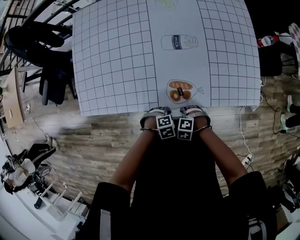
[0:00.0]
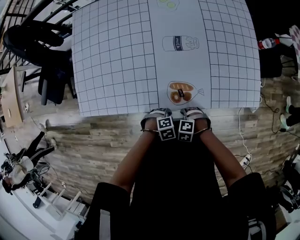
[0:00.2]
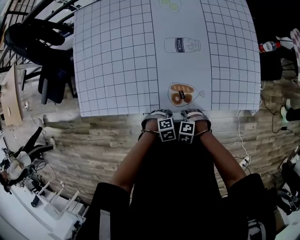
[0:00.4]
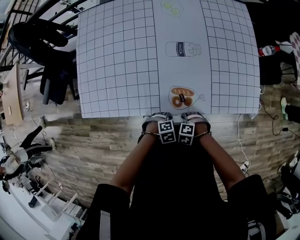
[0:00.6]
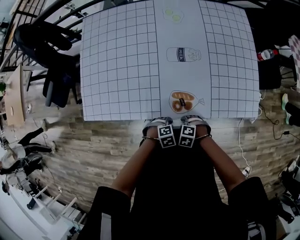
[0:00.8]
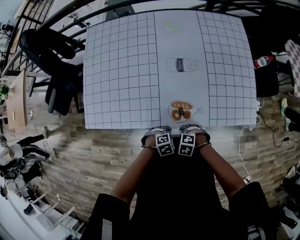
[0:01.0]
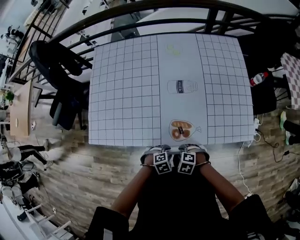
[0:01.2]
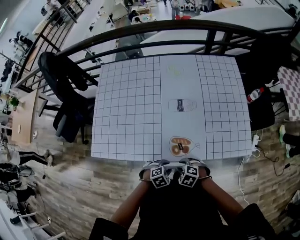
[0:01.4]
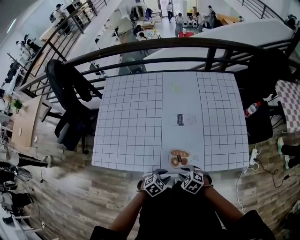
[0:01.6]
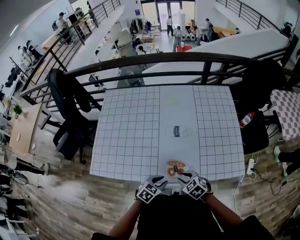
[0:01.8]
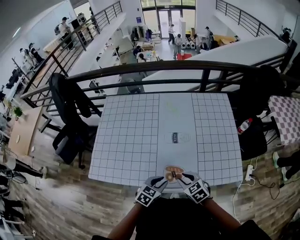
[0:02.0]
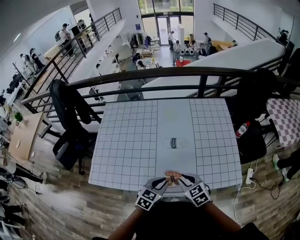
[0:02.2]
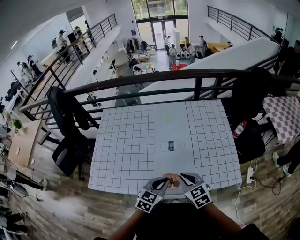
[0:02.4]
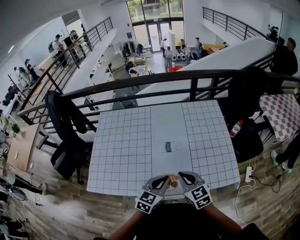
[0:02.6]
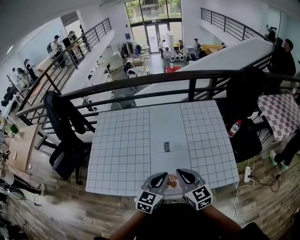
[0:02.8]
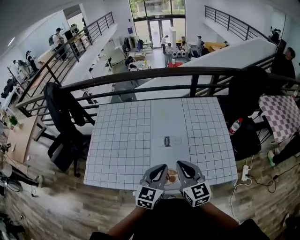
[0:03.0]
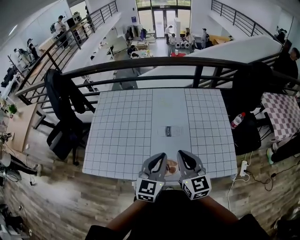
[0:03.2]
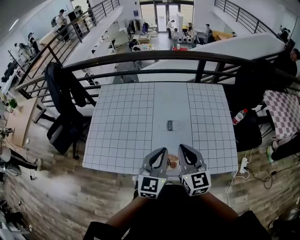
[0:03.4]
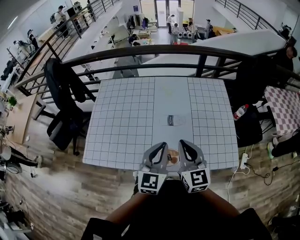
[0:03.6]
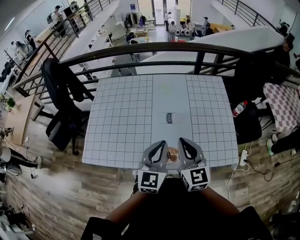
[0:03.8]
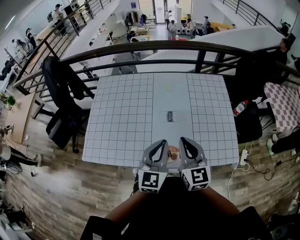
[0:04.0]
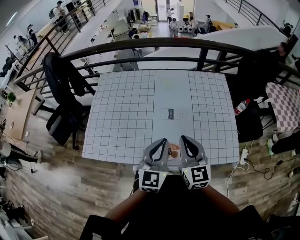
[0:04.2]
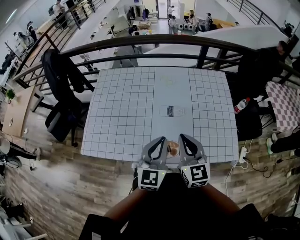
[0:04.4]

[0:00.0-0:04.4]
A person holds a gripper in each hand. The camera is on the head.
0:00.0 to 0:01.4: Both grippers travel together upward, approximately 10 cm.
0:01.4 to 0:03.0: The grippers both shift upward by roughly 30 cm. The left gripper tilts its fingers about 50 degrees upward, and closes up. The right gripper tilts its fingers some 60 degrees upward, and closes its fingers.
0:03.0 to 0:04.4: The grippers stay close to where they were, moving slightly.

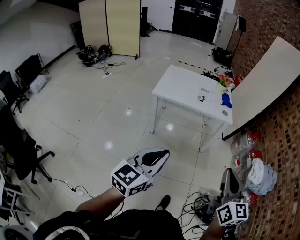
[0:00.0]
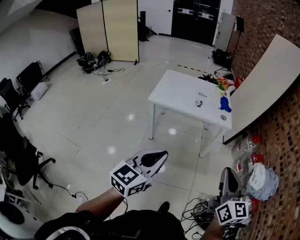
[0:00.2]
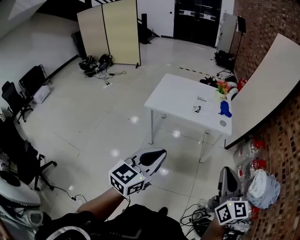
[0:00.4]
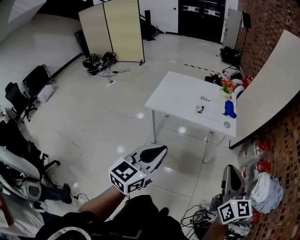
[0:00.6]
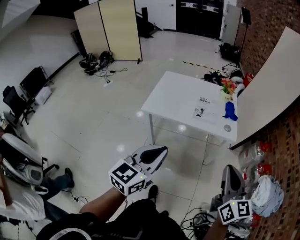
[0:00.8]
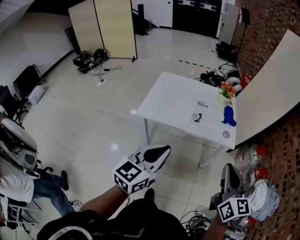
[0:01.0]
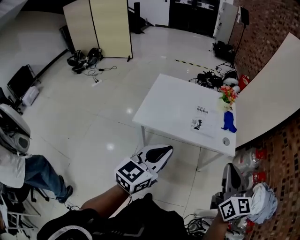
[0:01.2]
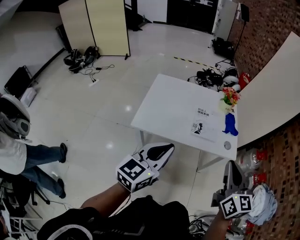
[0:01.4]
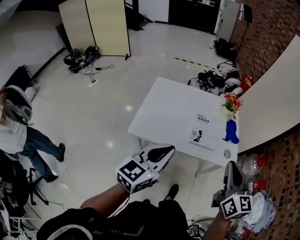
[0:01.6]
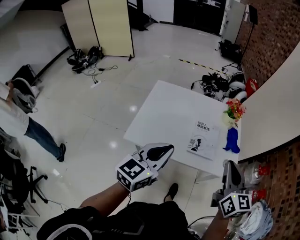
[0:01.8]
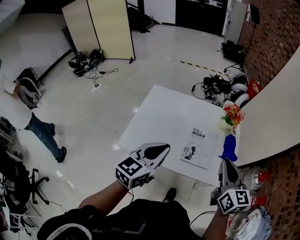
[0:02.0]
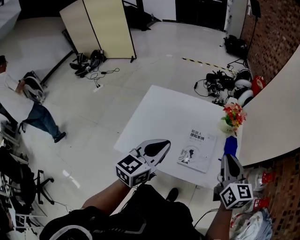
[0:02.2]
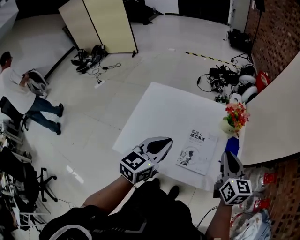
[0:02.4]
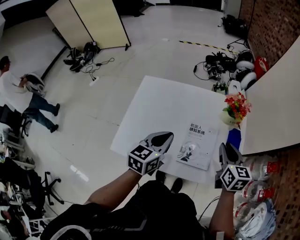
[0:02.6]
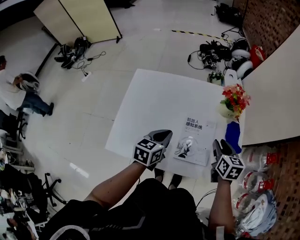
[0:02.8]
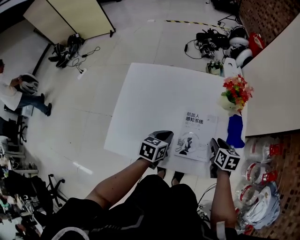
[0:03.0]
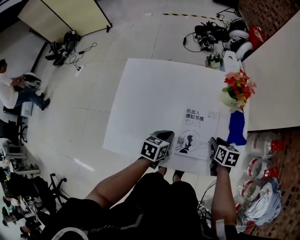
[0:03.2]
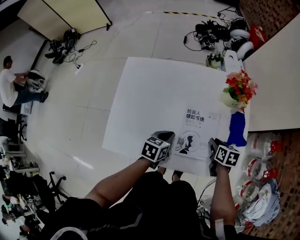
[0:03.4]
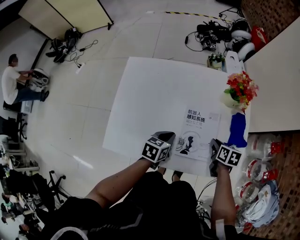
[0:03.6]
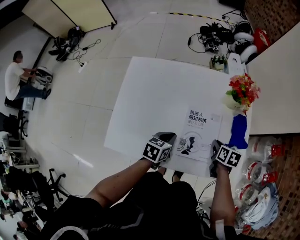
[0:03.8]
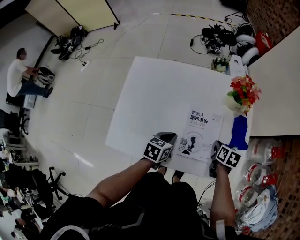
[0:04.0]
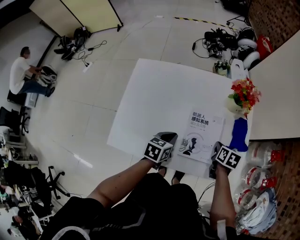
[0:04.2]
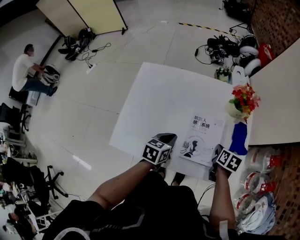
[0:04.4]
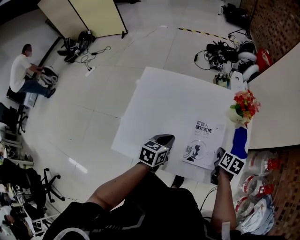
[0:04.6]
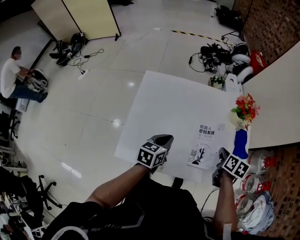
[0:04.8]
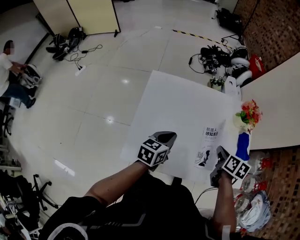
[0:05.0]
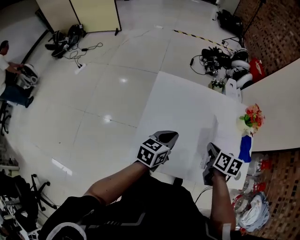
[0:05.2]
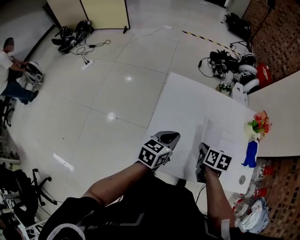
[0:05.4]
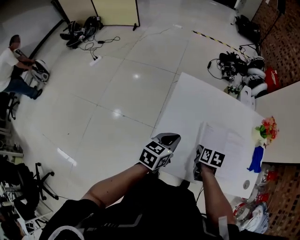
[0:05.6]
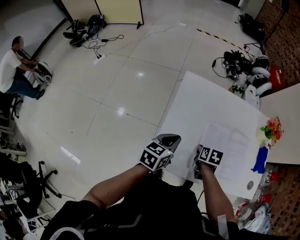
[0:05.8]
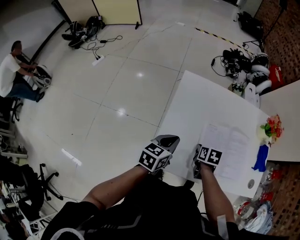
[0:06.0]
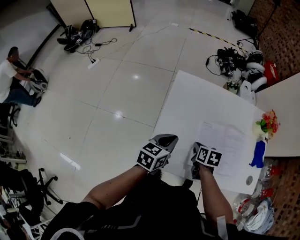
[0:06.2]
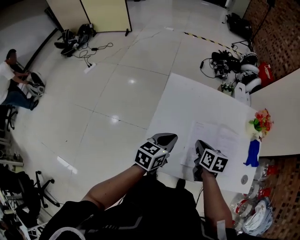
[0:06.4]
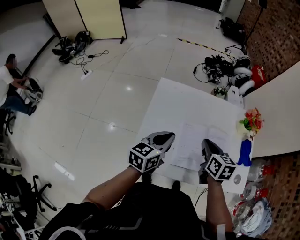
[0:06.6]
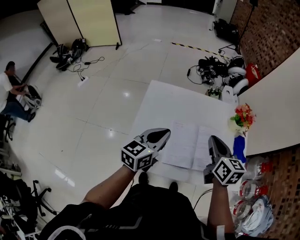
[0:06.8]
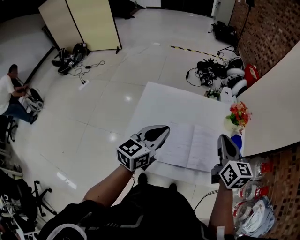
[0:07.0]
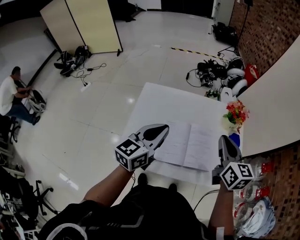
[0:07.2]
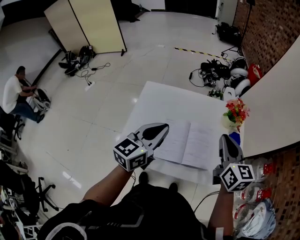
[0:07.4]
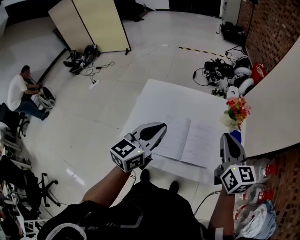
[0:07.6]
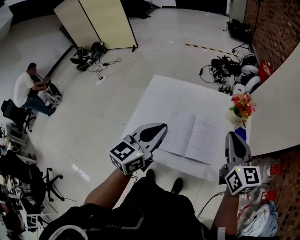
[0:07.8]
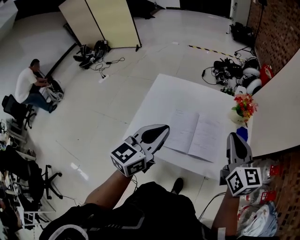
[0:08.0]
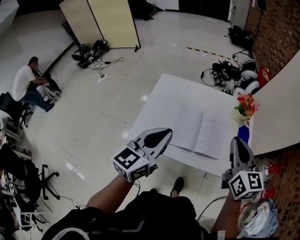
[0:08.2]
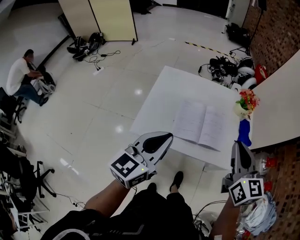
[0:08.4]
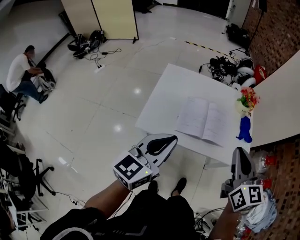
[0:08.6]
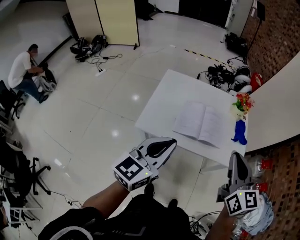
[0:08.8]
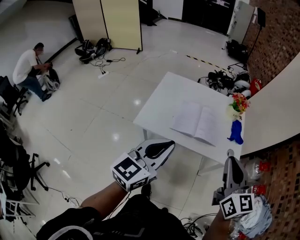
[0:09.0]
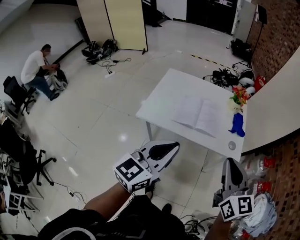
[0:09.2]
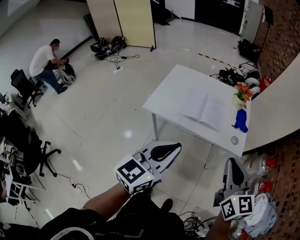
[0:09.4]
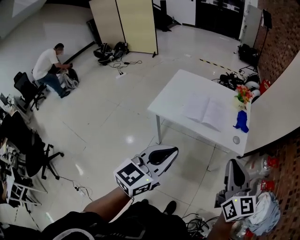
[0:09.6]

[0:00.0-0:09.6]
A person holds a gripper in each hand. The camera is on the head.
0:00.0 to 0:01.6: Both grippers are carried forward, about 50 cm.
0:01.6 to 0:03.2: The left gripper shifts roughly 40 cm forward and downward, and angles its fingers downward, by roughly 40 degrees. The right gripper goes some 50 cm downward and forward, tilts its fingers about 50 degrees downward, and opens up.
0:03.2 to 0:04.8: The right gripper travels upward and to the left by some 10 cm, and closes up, while the left gripper heads to the left and upward, covering some 10 cm.
0:04.8 to 0:06.4: The right gripper heads to the left, covering some 30 cm. The left gripper travels to the left by approximately 15 cm.
0:06.4 to 0:08.0: The left gripper travels upward, to the right and backward by about 25 cm, and swivels some 30 degrees, while the right gripper goes about 35 cm to the right and upward, and tips its fingers upward by approximately 40 degrees.
0:08.0 to 0:09.6: Both grippers are carried backward, approximately 40 cm.

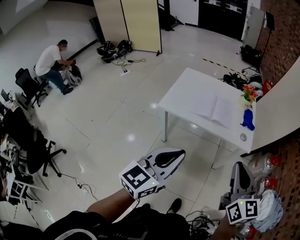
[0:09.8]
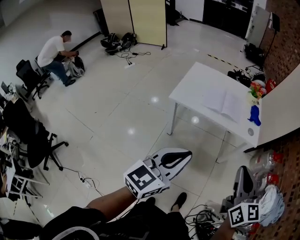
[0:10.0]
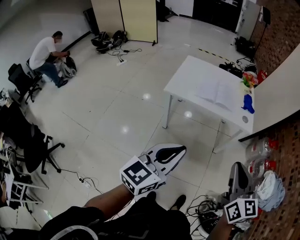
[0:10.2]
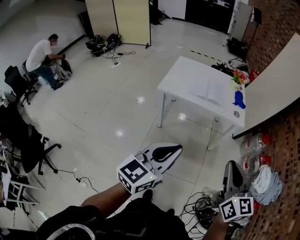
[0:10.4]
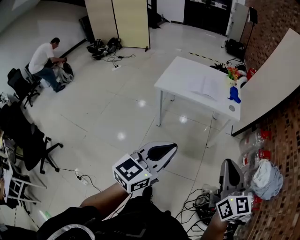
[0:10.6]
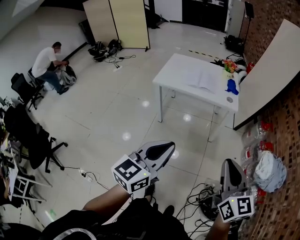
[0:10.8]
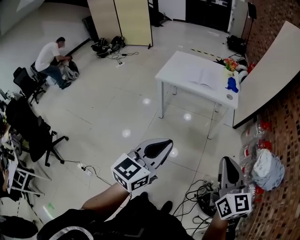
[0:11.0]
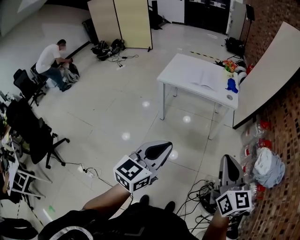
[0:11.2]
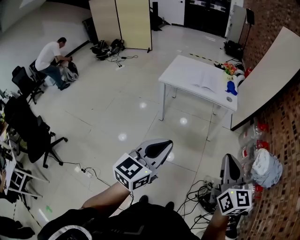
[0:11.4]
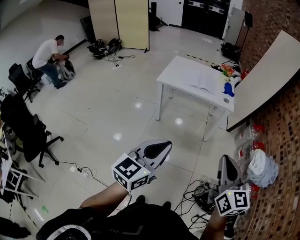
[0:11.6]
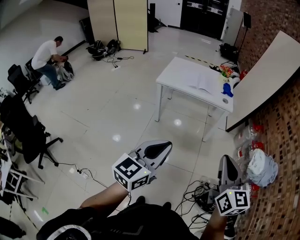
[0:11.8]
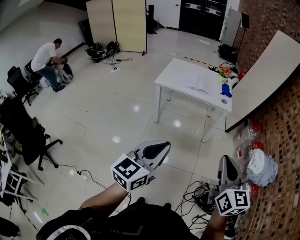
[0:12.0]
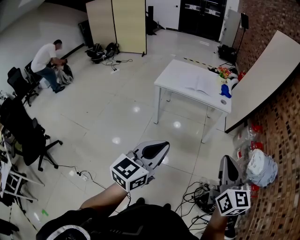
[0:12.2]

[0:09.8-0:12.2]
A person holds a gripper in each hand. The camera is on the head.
0:09.8 to 0:11.0: Both grippers move backward, approximately 30 cm.
0:11.0 to 0:12.2: The grippers both shift backward by about 5 cm.

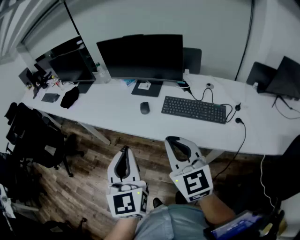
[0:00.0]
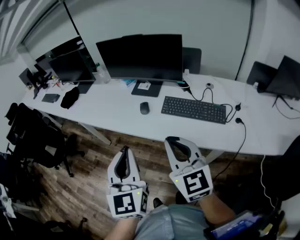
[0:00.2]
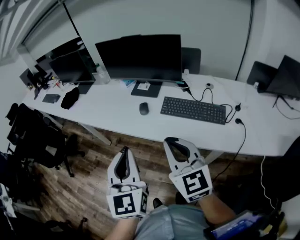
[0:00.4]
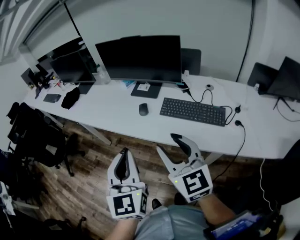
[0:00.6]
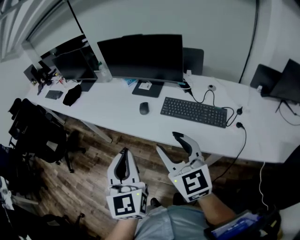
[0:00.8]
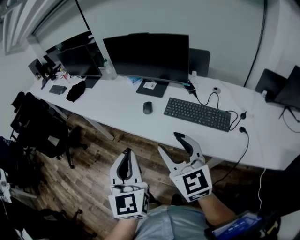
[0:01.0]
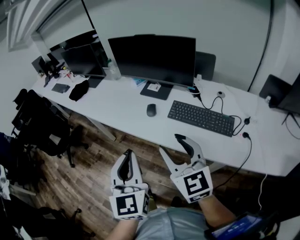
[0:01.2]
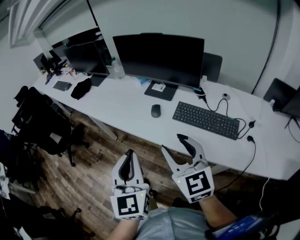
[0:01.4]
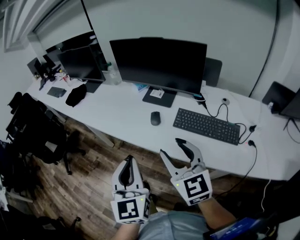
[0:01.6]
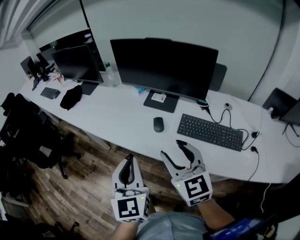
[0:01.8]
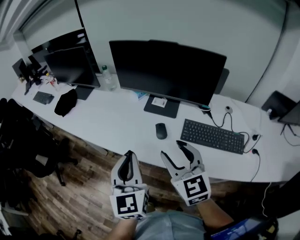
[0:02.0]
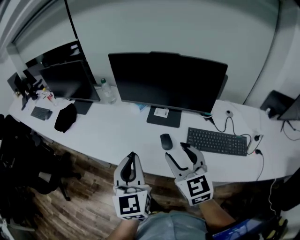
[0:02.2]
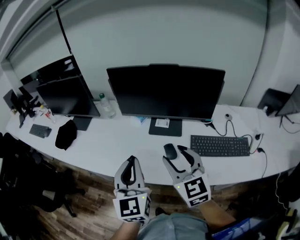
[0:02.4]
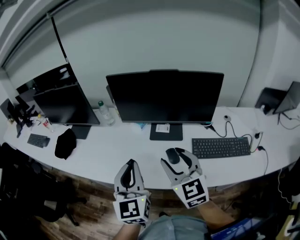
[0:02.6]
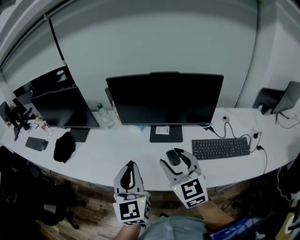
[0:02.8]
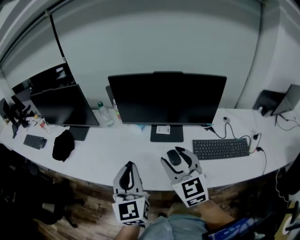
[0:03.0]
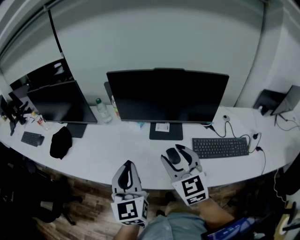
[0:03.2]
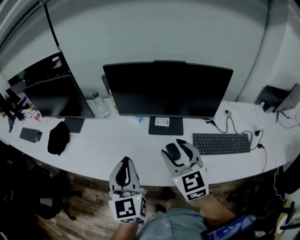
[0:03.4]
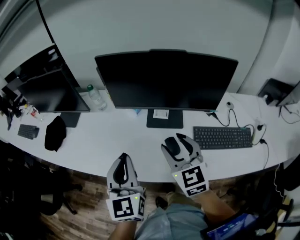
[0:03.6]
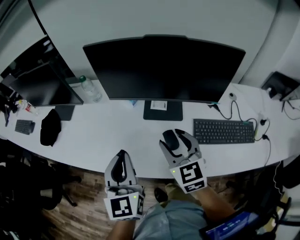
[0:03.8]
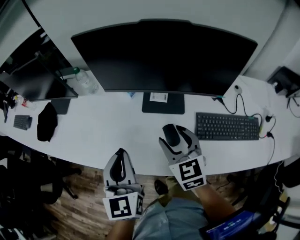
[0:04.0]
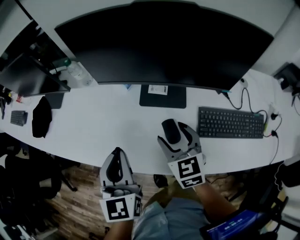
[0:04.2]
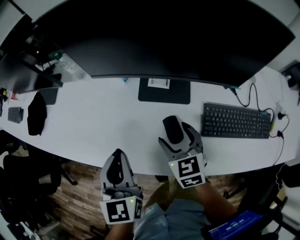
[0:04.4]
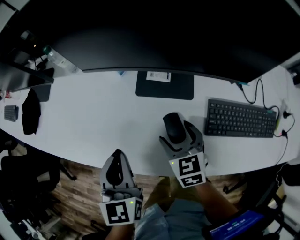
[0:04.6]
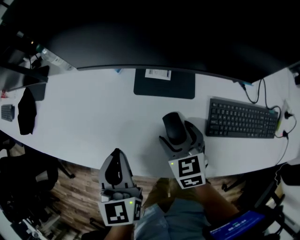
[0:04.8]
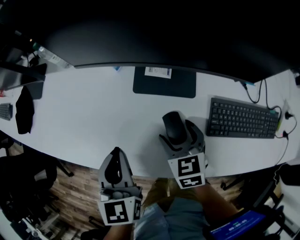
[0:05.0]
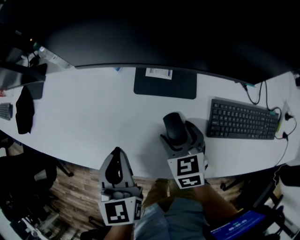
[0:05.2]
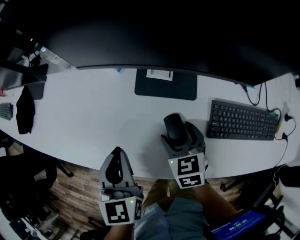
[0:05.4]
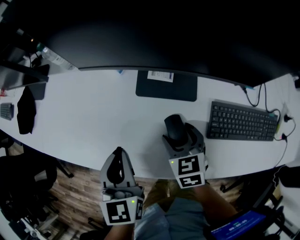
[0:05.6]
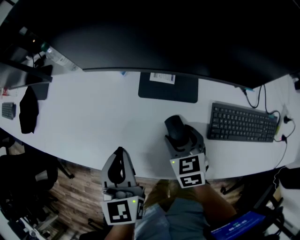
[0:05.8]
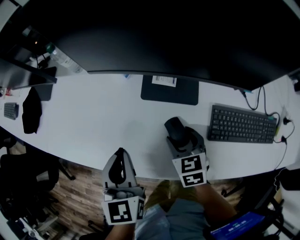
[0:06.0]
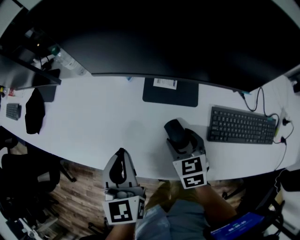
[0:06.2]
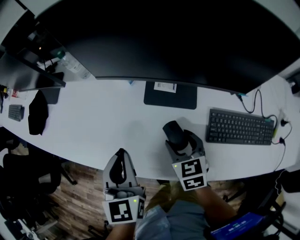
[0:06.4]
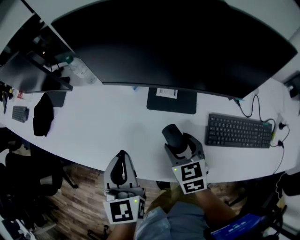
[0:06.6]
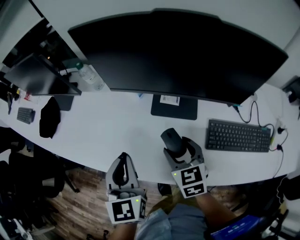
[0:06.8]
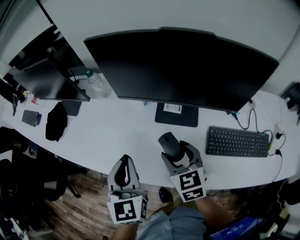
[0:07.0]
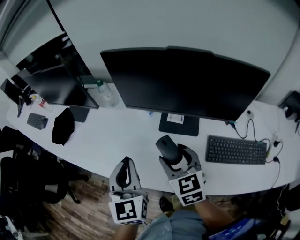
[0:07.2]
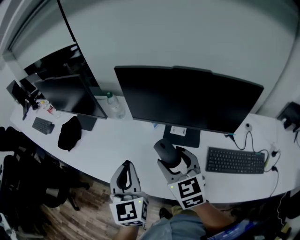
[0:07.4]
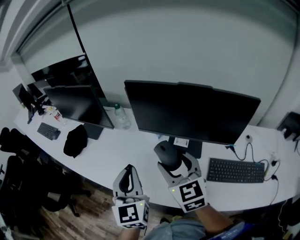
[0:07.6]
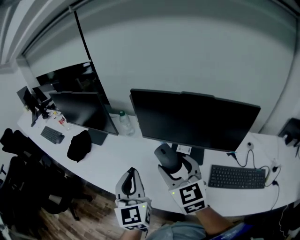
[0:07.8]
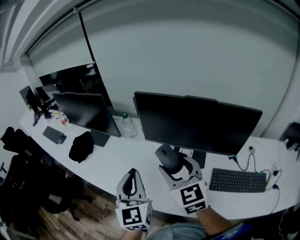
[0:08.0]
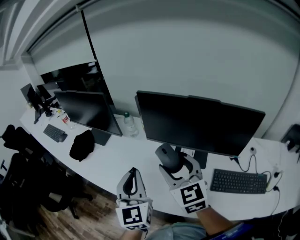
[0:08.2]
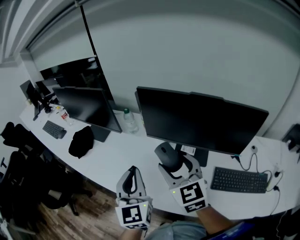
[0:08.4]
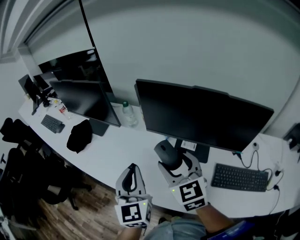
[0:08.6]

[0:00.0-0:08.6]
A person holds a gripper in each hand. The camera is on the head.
0:00.0 to 0:01.4: The right gripper moves forward, some 5 cm, and opens its fingers.
0:01.4 to 0:02.8: The two grippers go roughly 30 cm forward and to the left. The right gripper rotates approximately 20 degrees; the left gripper turns by about 20 degrees.
0:02.8 to 0:04.4: The right gripper goes about 25 cm downward and forward, rotates roughly 30 degrees, and opens its fingers. The left gripper travels downward and forward by roughly 15 cm, and rotates roughly 20 degrees.
0:04.4 to 0:05.8: The right gripper goes some 5 cm downward.
0:05.8 to 0:07.2: The right gripper shifts about 20 cm upward, and rotates about 20 degrees, while the left gripper moves upward, about 10 cm.
0:07.2 to 0:08.6: The left gripper shifts by approximately 5 cm. The right gripper shifts roughly 10 cm upward.
